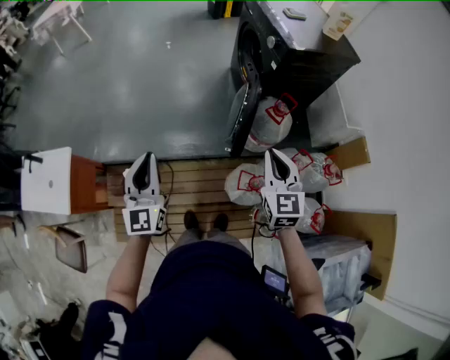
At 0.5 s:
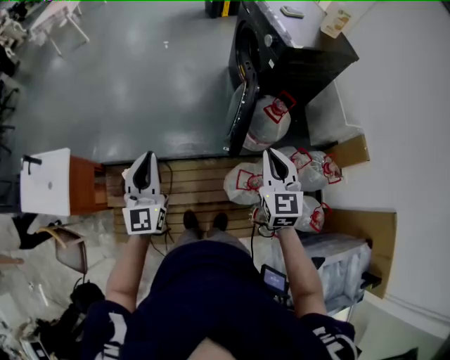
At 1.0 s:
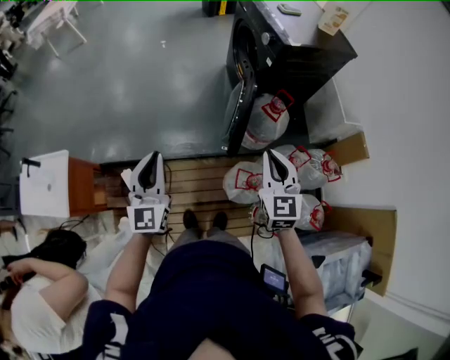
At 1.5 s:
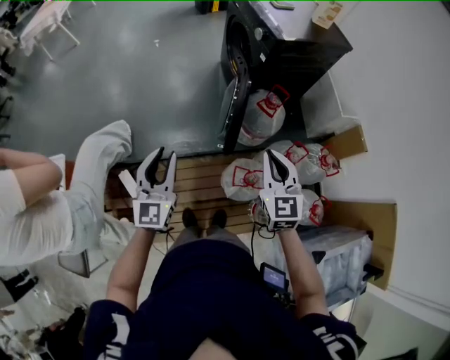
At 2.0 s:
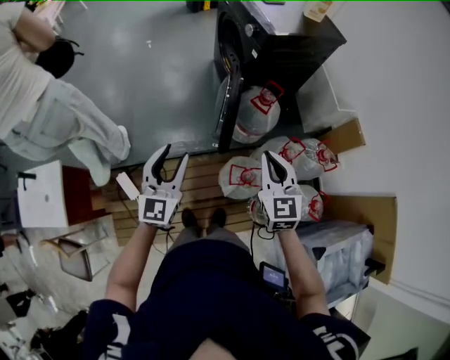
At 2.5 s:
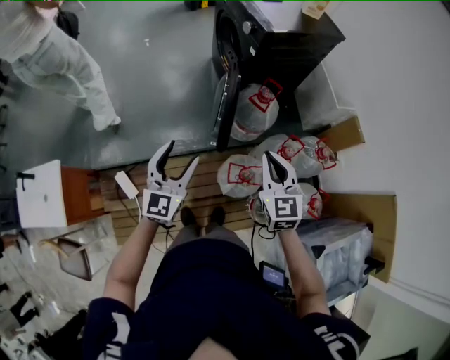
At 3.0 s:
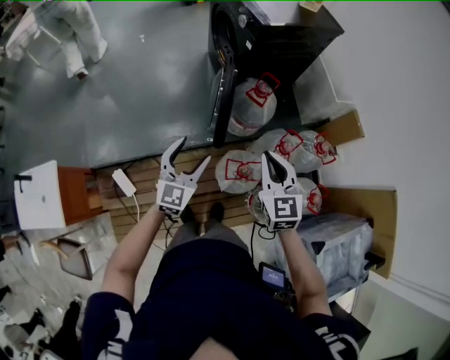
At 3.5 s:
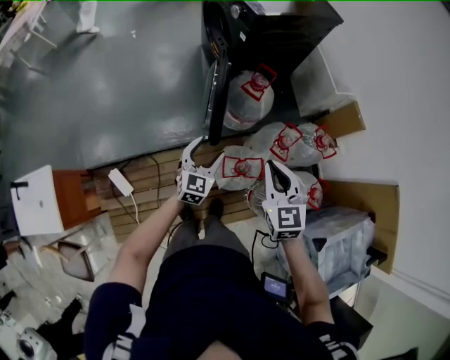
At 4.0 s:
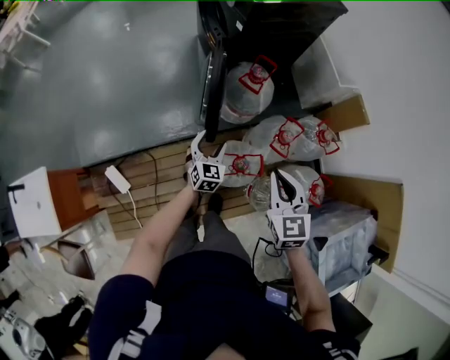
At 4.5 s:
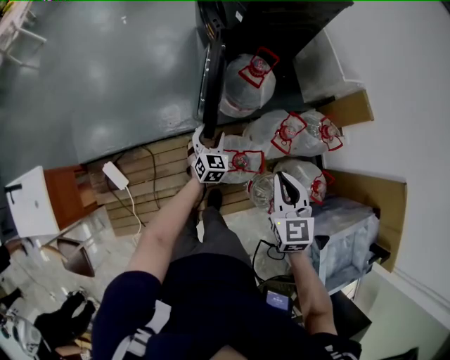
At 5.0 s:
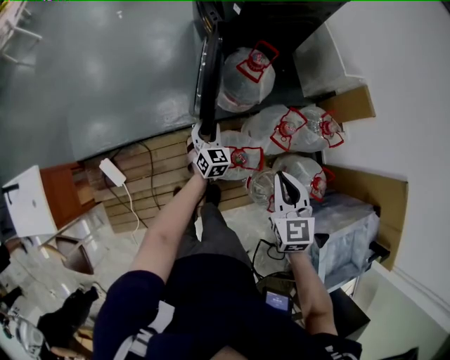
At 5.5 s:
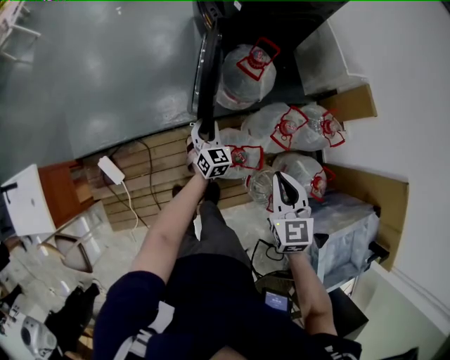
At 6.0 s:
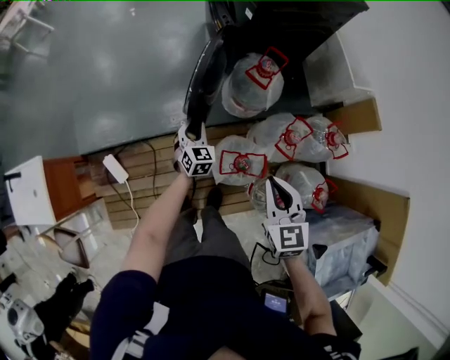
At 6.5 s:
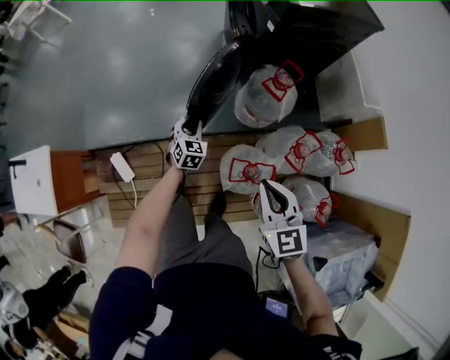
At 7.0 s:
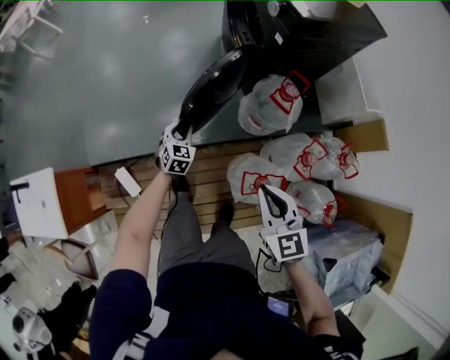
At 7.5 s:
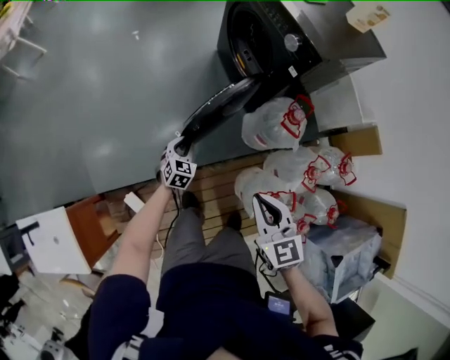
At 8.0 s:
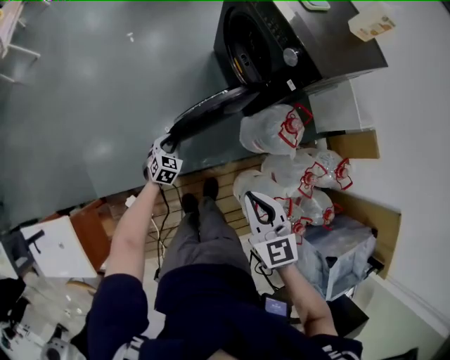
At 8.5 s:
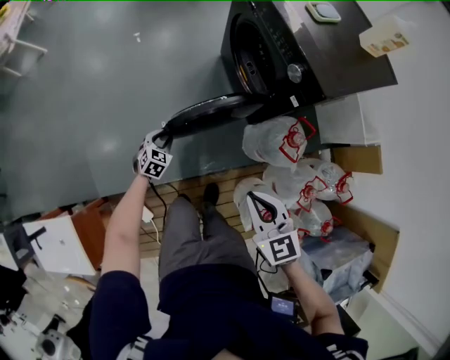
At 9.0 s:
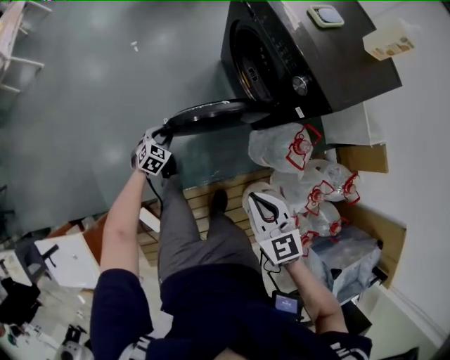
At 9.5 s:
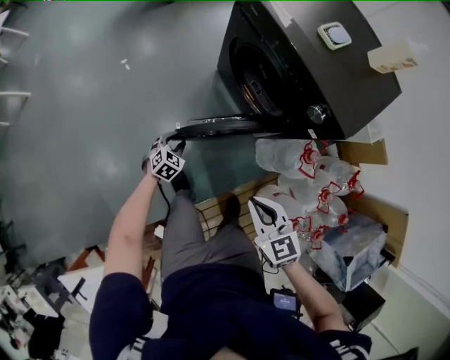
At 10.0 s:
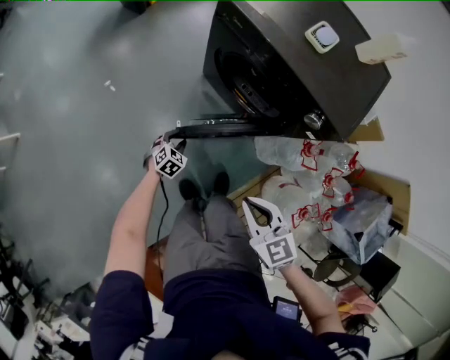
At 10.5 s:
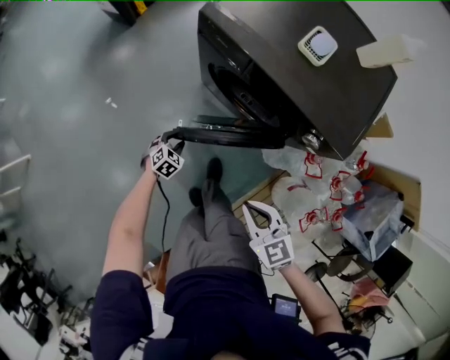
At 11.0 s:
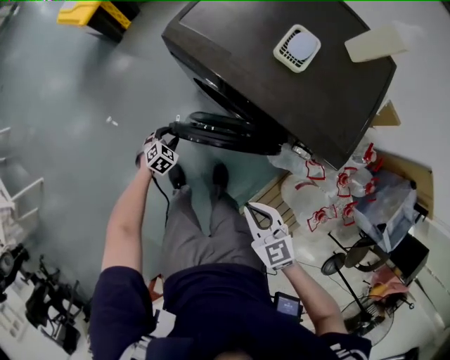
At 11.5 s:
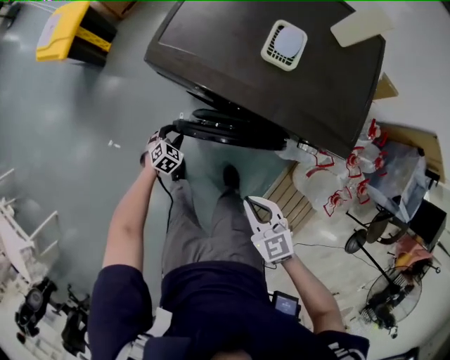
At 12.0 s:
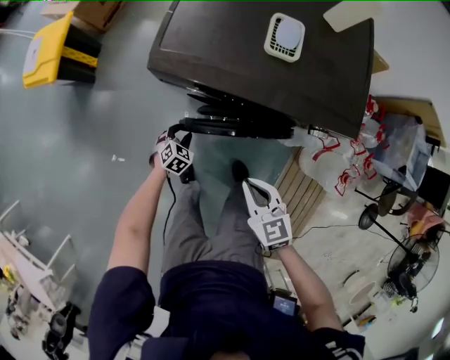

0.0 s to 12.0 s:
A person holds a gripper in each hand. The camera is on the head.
0.0 to 2.0 s: The left gripper shifts approximately 10 cm to the right, rotates some 20 degrees, and opens its fingers, while the right gripper moves roughly 5 cm.
2.0 to 4.0 s: The right gripper heads downward and to the right, covering some 10 cm; the left gripper heads downward and to the right, covering some 30 cm, turns by approximately 30 degrees, and opens its fingers.
4.0 to 6.0 s: The left gripper goes approximately 10 cm downward, to the left and forward, and closes up.
6.0 to 8.0 s: The two grippers go approximately 35 cm to the left and forward. The left gripper changes its angle by roughly 20 degrees.
8.0 to 10.0 s: The left gripper moves roughly 35 cm, and swivels approximately 40 degrees; the right gripper ends up roughly 35 cm from where it was.
10.0 to 12.0 s: The left gripper shifts by approximately 30 cm, and turns by about 30 degrees. Meanwhile the right gripper changes place by roughly 25 cm, and swivels some 30 degrees.

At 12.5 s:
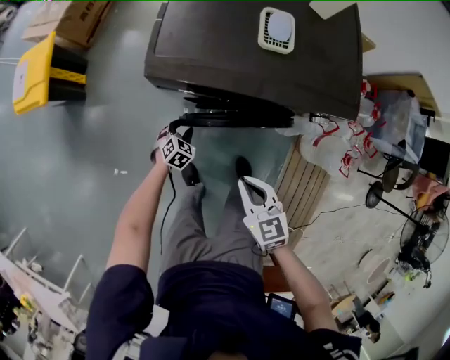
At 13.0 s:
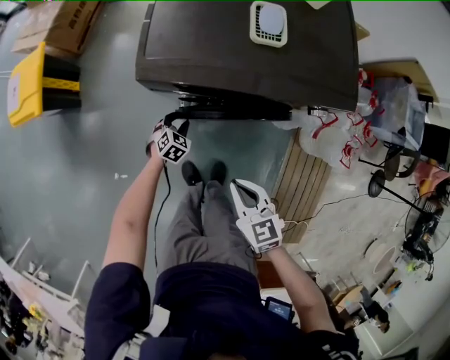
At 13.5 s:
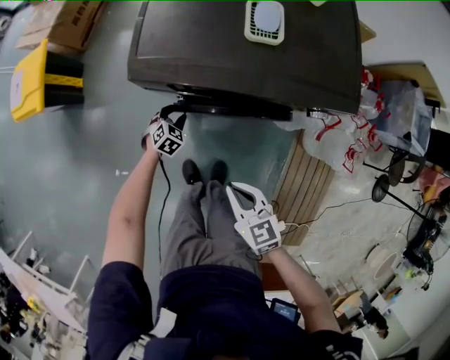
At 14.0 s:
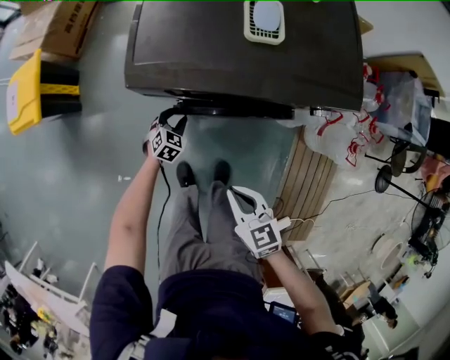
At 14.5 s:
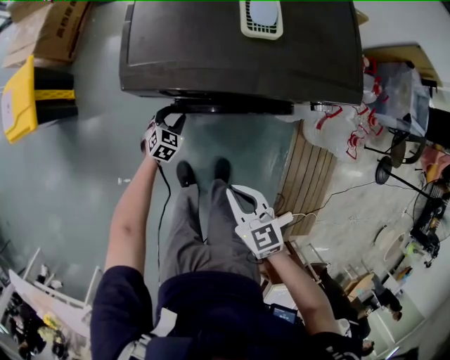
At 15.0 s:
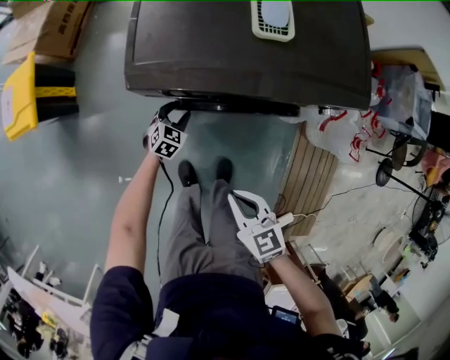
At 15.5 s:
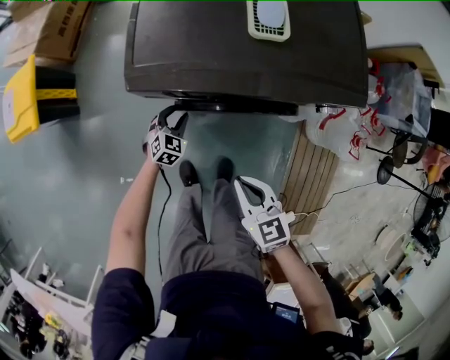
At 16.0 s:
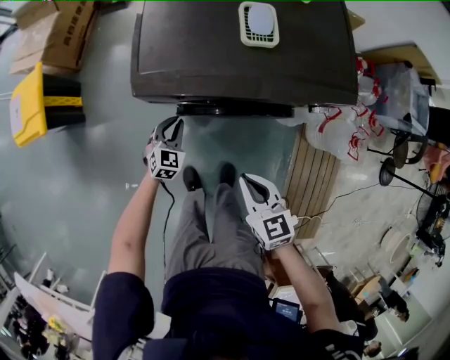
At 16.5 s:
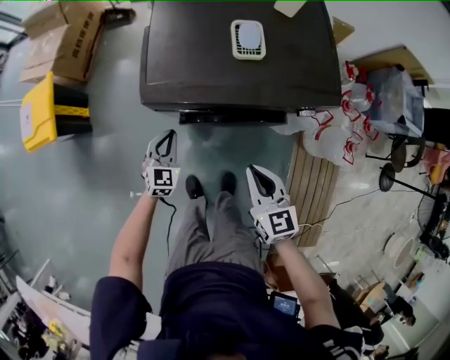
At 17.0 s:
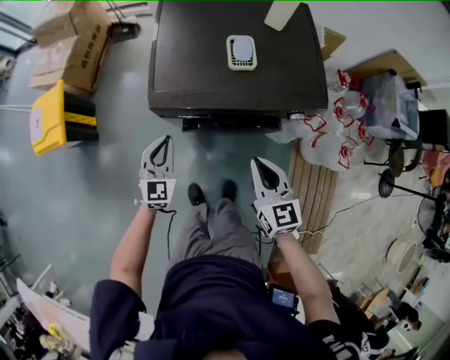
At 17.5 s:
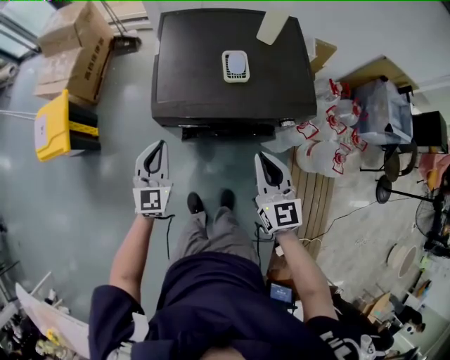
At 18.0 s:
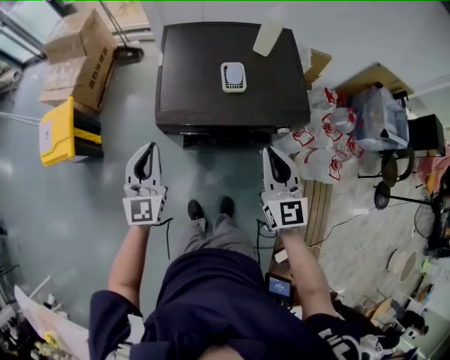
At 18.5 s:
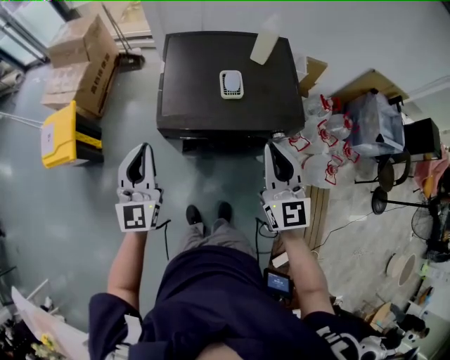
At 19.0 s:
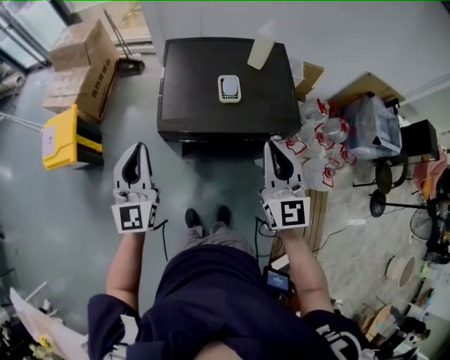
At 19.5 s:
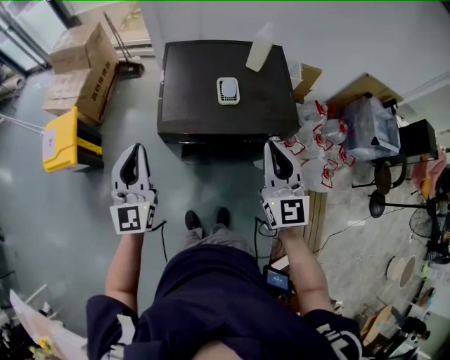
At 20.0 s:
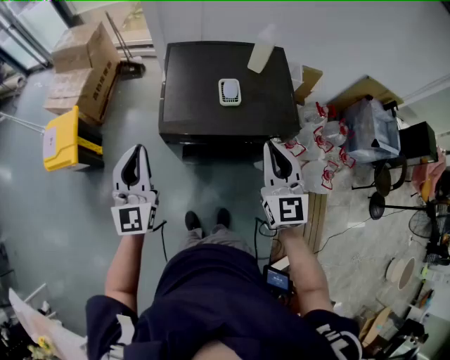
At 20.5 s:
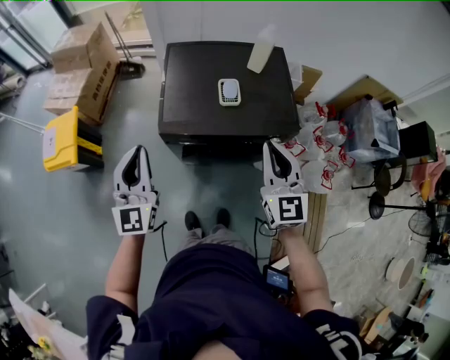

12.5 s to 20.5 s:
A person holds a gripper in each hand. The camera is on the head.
12.5 to 14.5 s: The left gripper moves forward, approximately 5 cm.
14.5 to 16.5 s: The left gripper travels upward by roughly 20 cm, swivels about 20 degrees, and closes up. The right gripper is displaced upward and forward by about 10 cm.
16.5 to 18.5 s: The grippers both shift upward by roughly 35 cm. The left gripper angles its fingers upward, by approximately 30 degrees, while the right gripper changes its angle by about 30 degrees.
18.5 to 20.5 s: The grippers move only a little.

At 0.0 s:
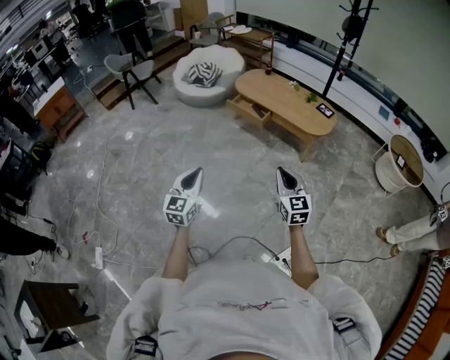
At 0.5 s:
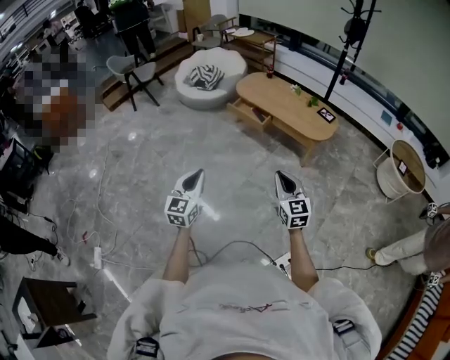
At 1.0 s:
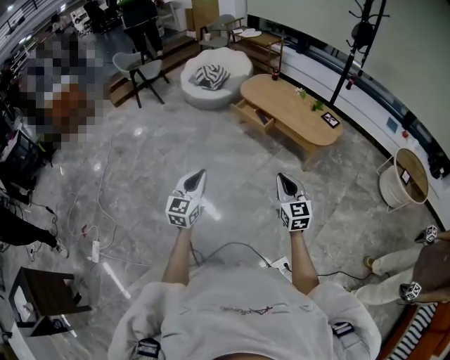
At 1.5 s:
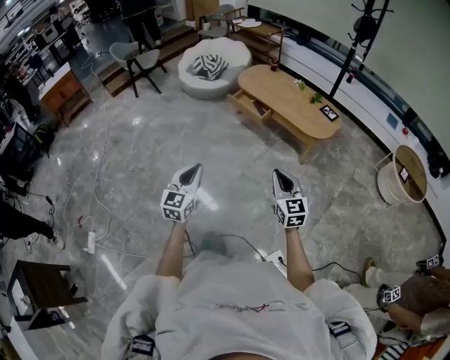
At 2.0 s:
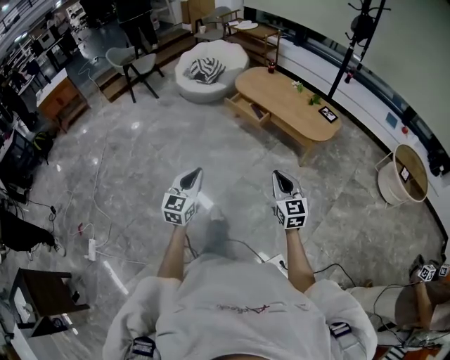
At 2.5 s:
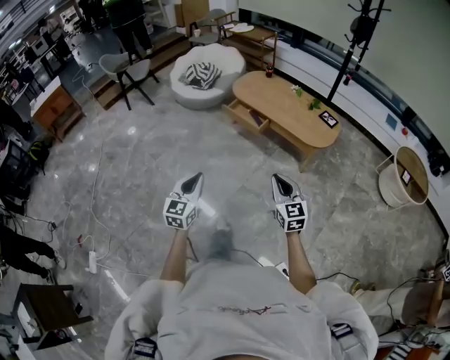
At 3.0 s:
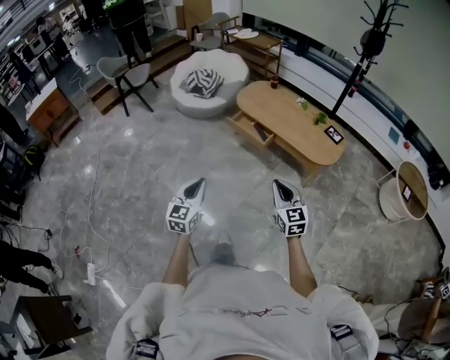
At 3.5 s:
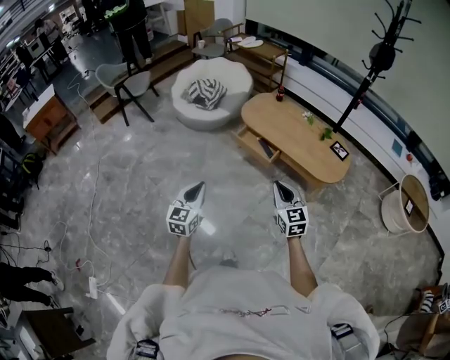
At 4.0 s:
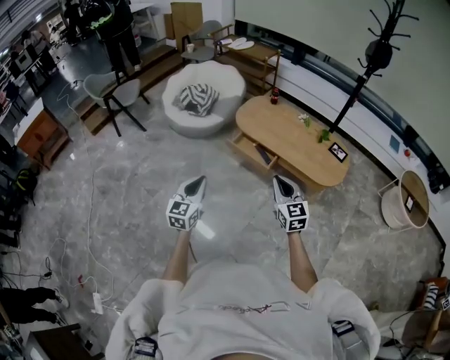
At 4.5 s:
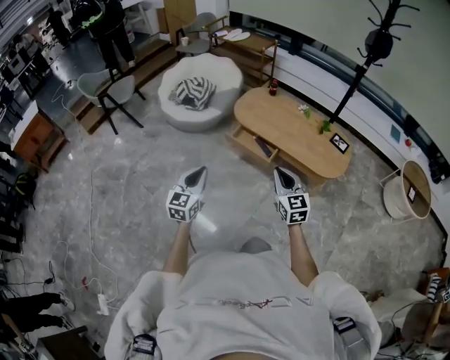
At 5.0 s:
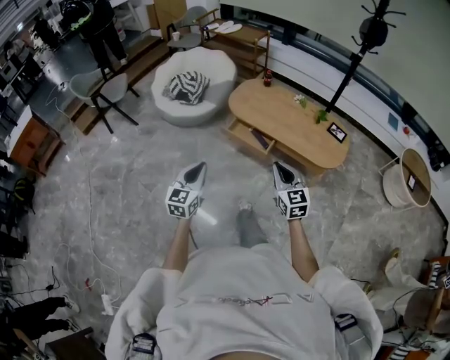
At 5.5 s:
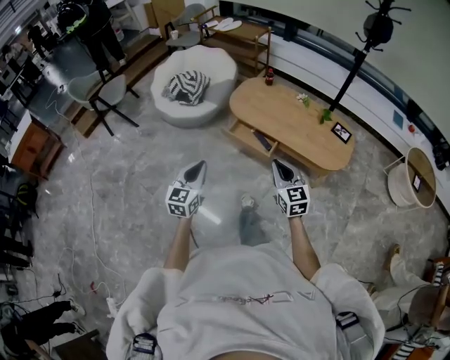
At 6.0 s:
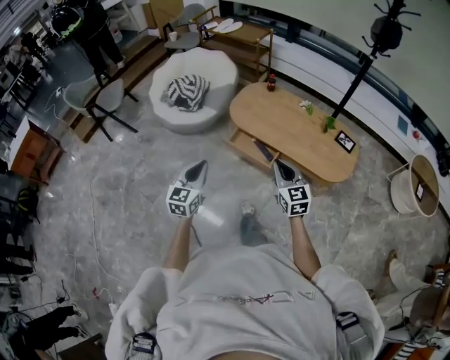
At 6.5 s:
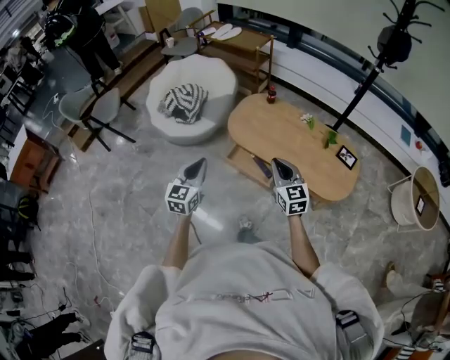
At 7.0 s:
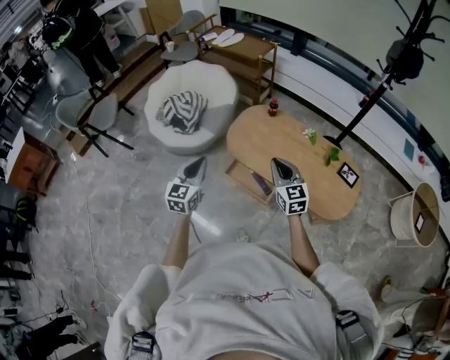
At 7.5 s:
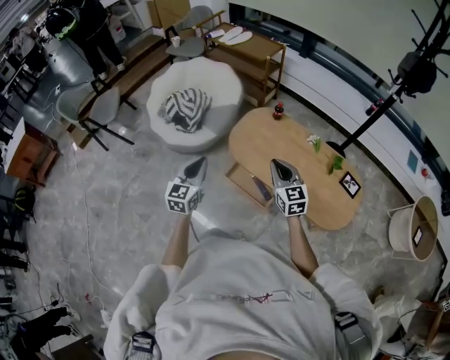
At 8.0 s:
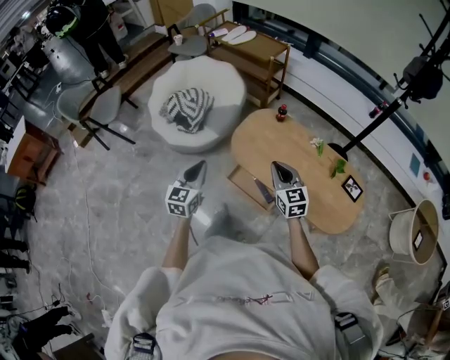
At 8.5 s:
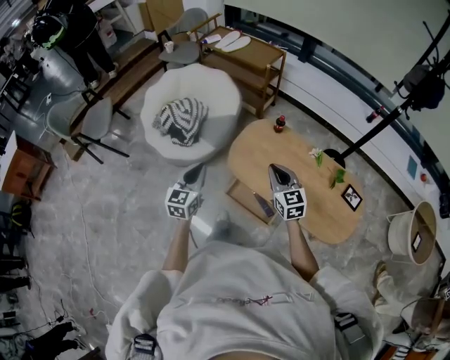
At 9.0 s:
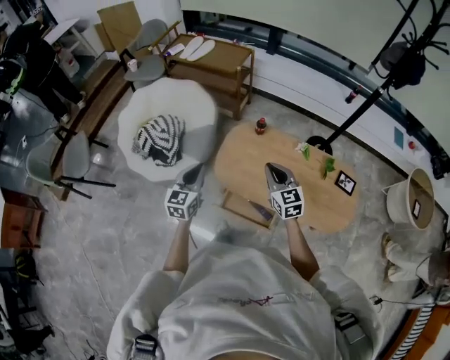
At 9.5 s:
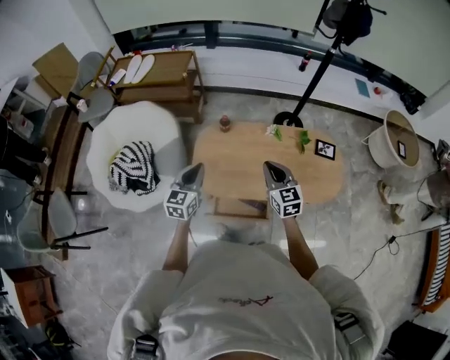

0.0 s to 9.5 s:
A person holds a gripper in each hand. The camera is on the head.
0.0 to 2.0 s: Both grippers move to the right and forward, roughly 10 cm.
2.0 to 4.0 s: The pair of grippers is taken forward, about 40 cm.
4.0 to 5.5 s: The two grippers go about 10 cm forward.
5.5 to 7.5 s: The pair of grippers is taken forward, about 40 cm.
7.5 to 9.5 s: The left gripper shifts by some 30 cm, and rotates some 30 degrees. Meanwhile the right gripper shifts by roughly 20 cm, and turns by roughly 30 degrees.
